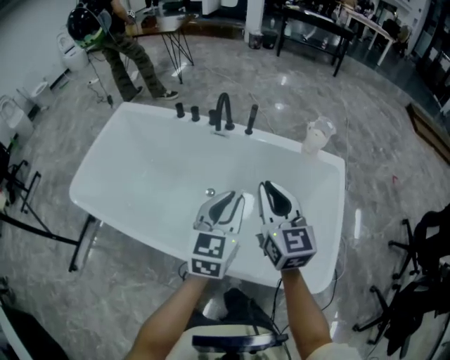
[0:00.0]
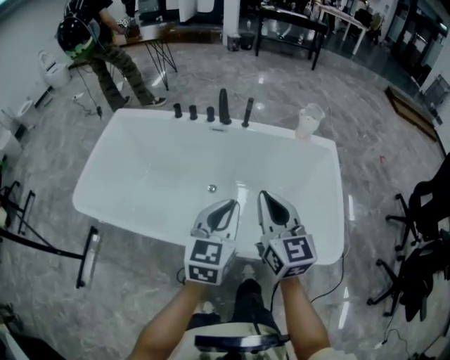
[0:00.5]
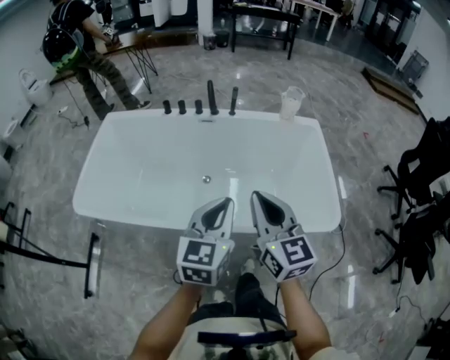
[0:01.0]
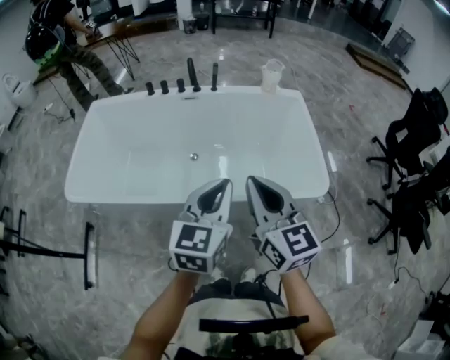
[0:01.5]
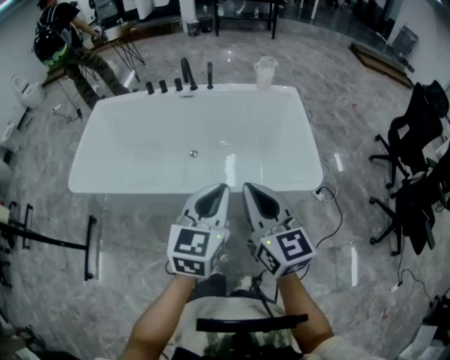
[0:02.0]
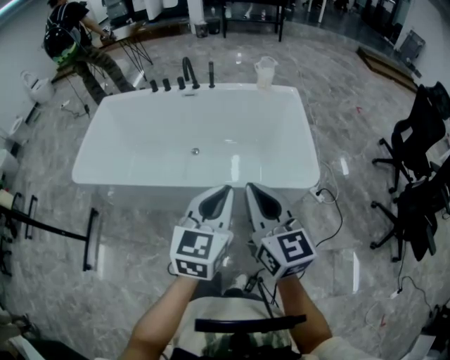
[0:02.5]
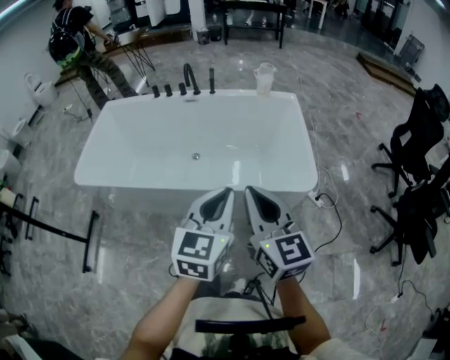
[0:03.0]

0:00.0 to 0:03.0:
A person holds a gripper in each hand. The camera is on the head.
0:00.0 to 0:01.5: Both grippers travel together backward, roughly 30 cm.
0:01.5 to 0:03.0: Both grippers travel together to the right and backward, approximately 15 cm.

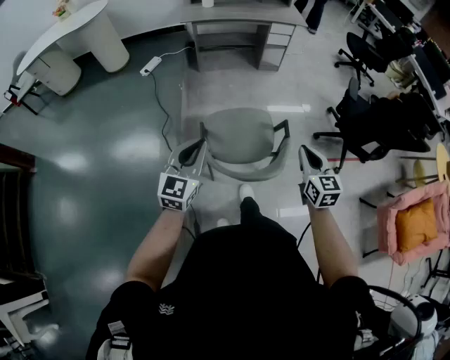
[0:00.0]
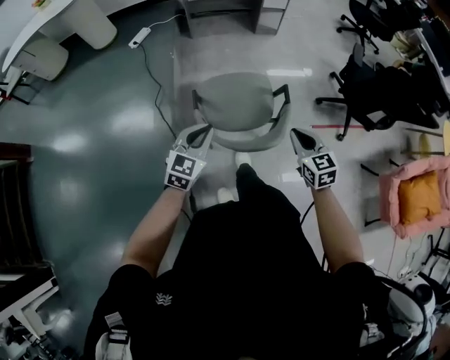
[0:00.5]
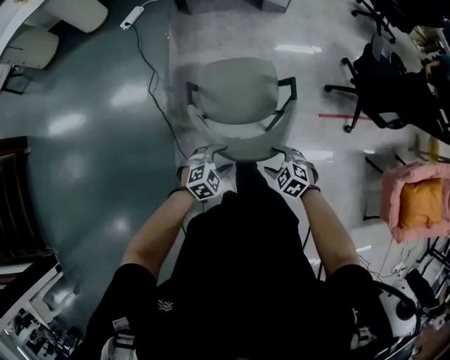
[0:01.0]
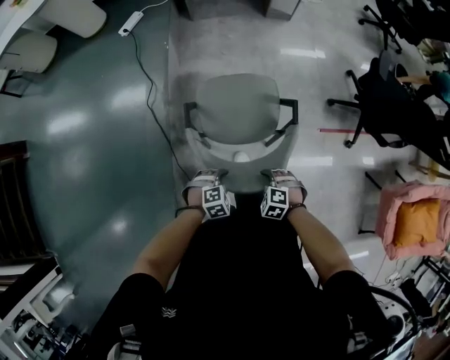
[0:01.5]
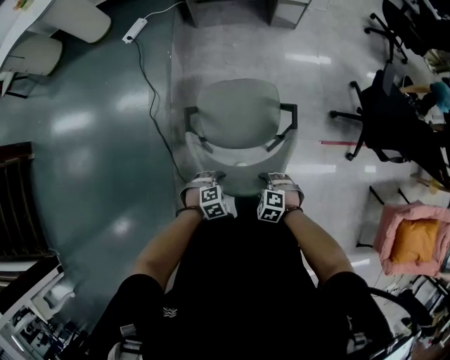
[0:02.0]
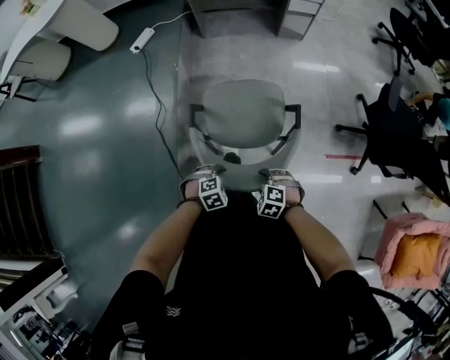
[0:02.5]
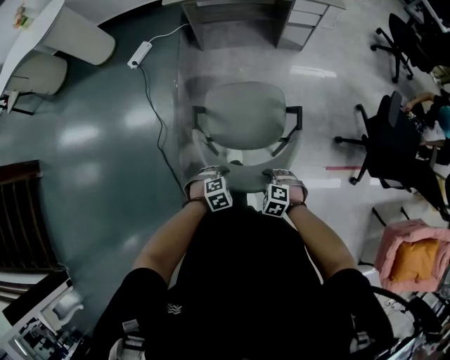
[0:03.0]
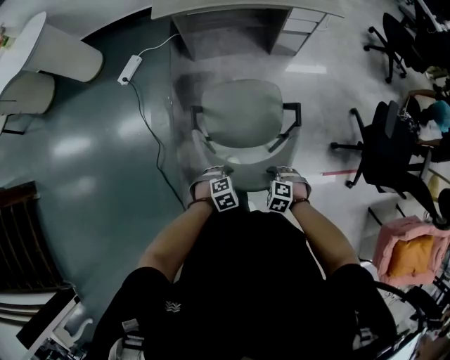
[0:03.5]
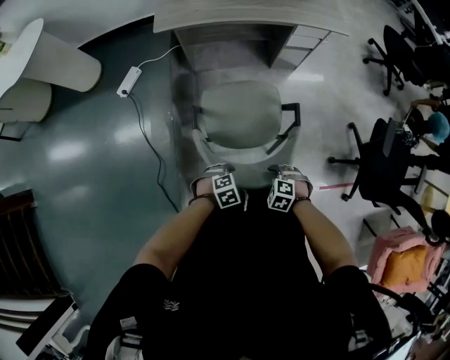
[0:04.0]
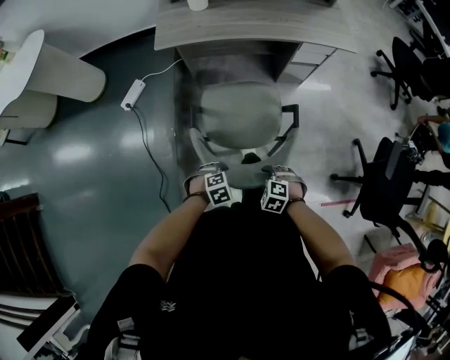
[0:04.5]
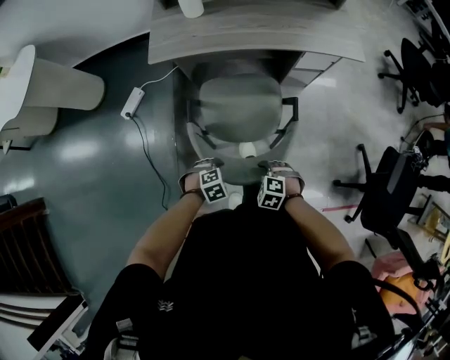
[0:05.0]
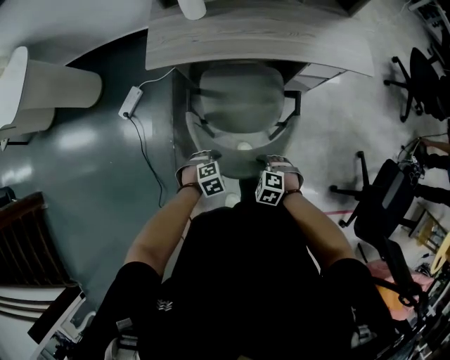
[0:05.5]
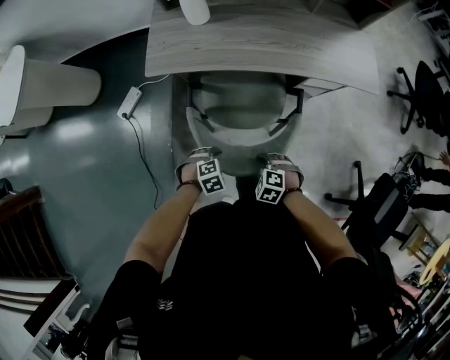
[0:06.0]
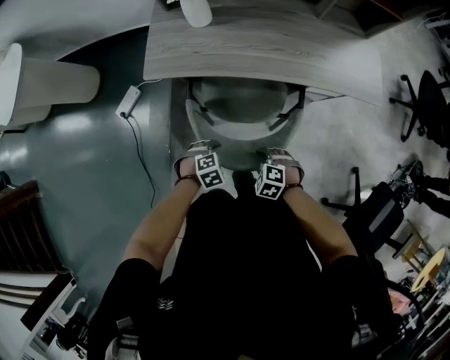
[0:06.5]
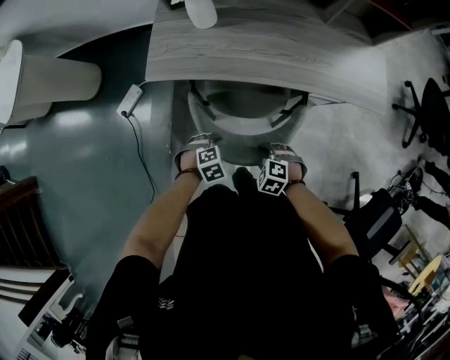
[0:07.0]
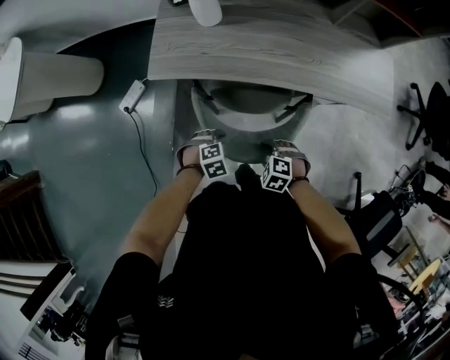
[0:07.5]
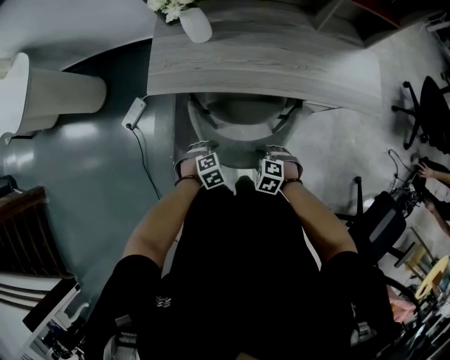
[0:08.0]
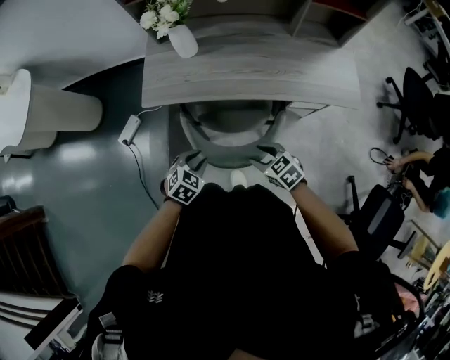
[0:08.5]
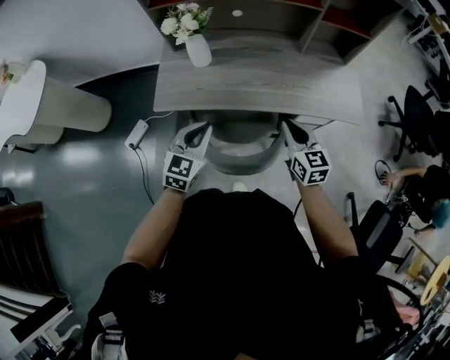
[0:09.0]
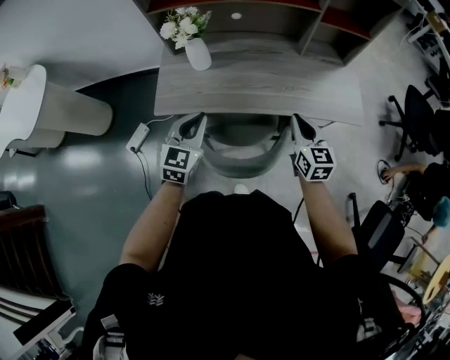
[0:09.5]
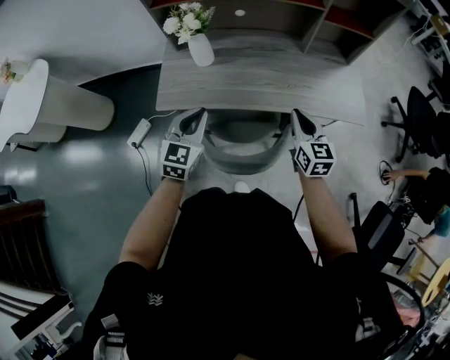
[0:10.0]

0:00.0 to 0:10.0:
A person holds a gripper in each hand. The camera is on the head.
0:00.0 to 0:02.0: Both grippers travel together downward, roughly 35 cm. The right gripper tilts its fingers some 50 degrees downward, and opens. The left gripper points its fingers about 60 degrees further downward, and opens up.
0:02.0 to 0:04.0: Both grippers are carried roughly 40 cm.
0:04.0 to 0:06.0: The left gripper moves roughly 40 cm, while the right gripper ends up approximately 40 cm from where it was.
0:06.0 to 0:08.0: The right gripper changes place by about 10 cm; the left gripper ends up some 10 cm from where it was.
0:08.0 to 0:10.0: Both grippers travel together upward, approximately 30 cm. The right gripper points its fingers approximately 50 degrees further upward, and closes. The left gripper tilts its fingers about 60 degrees upward, and closes.

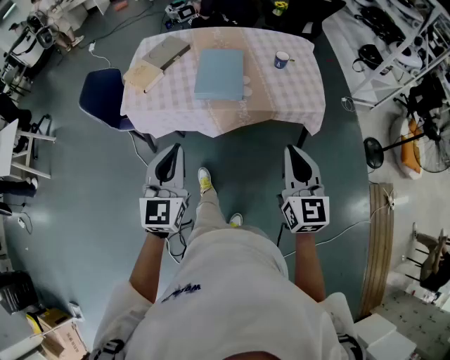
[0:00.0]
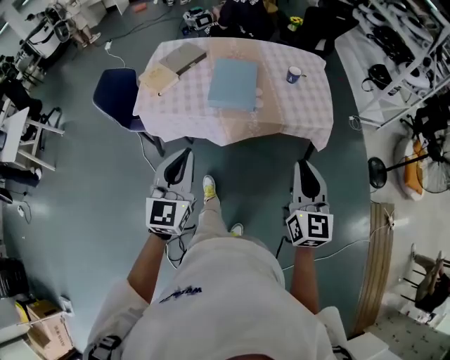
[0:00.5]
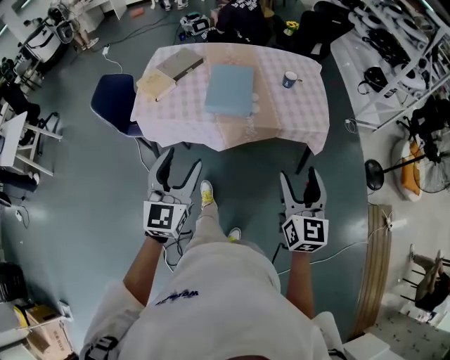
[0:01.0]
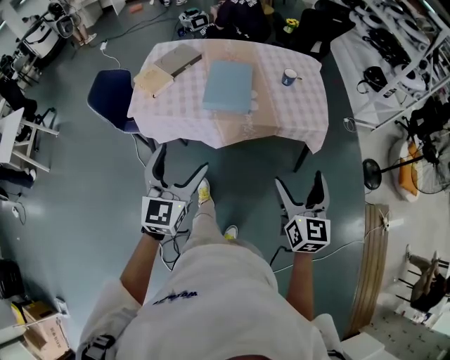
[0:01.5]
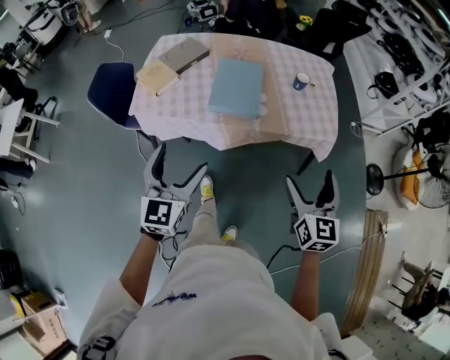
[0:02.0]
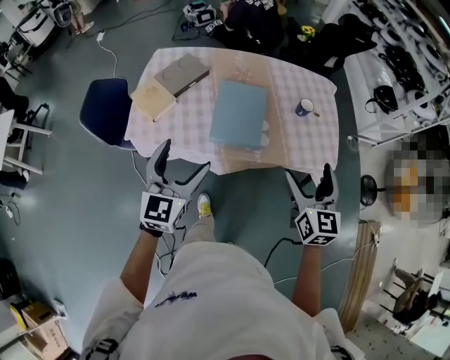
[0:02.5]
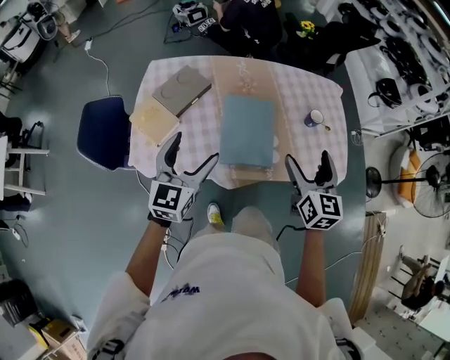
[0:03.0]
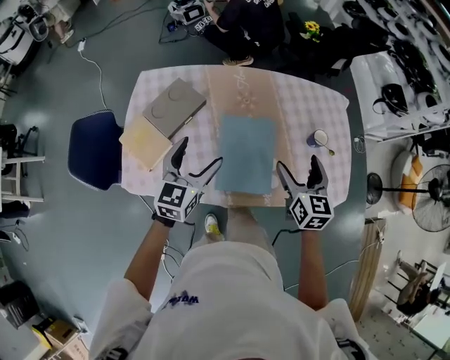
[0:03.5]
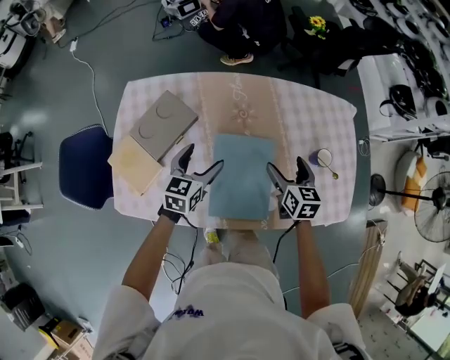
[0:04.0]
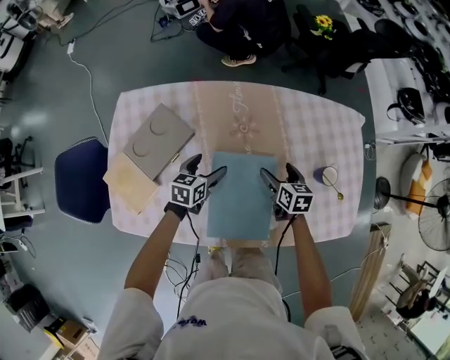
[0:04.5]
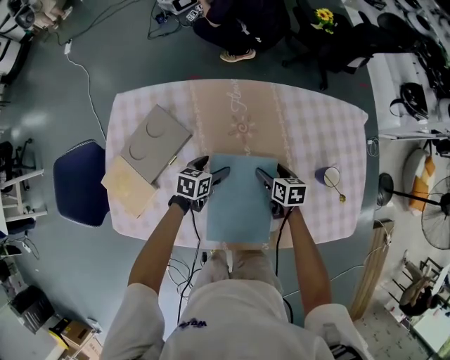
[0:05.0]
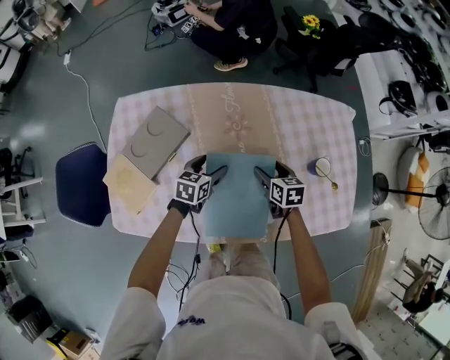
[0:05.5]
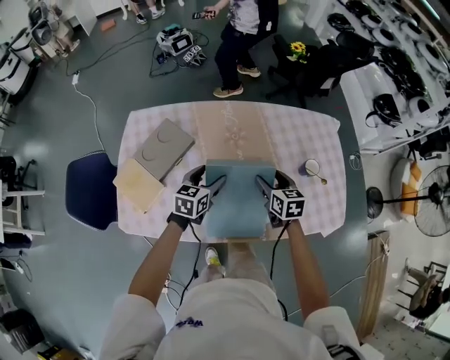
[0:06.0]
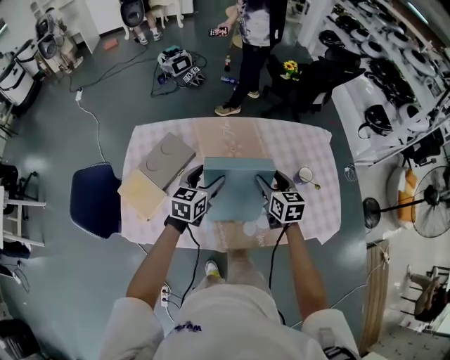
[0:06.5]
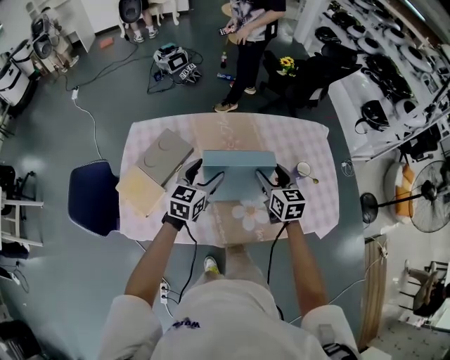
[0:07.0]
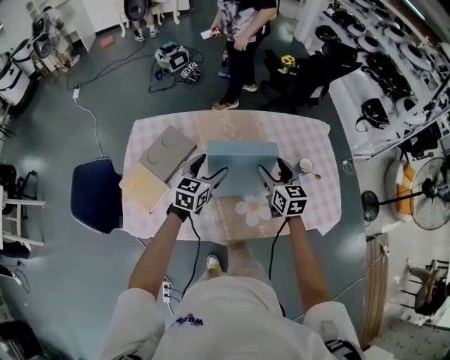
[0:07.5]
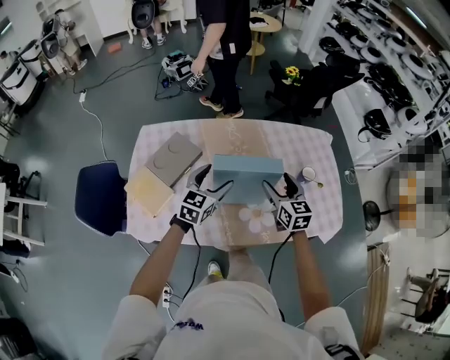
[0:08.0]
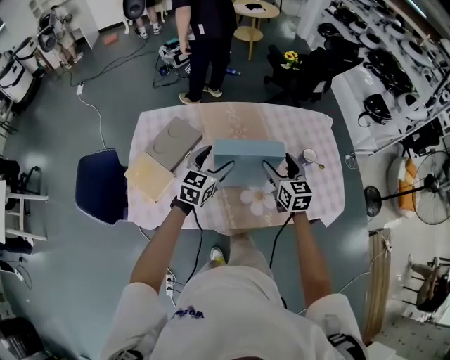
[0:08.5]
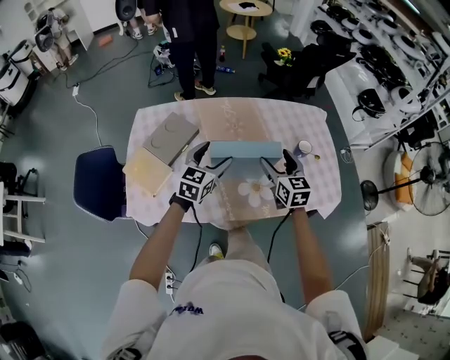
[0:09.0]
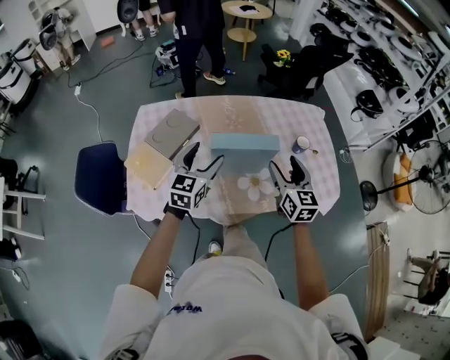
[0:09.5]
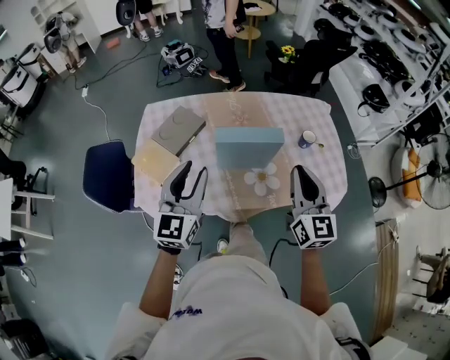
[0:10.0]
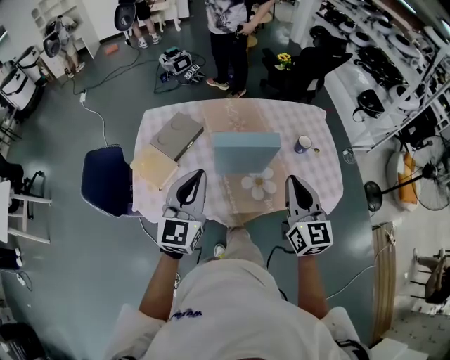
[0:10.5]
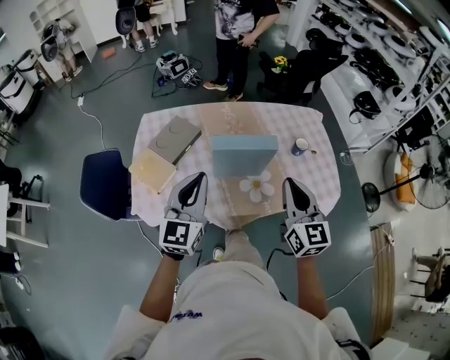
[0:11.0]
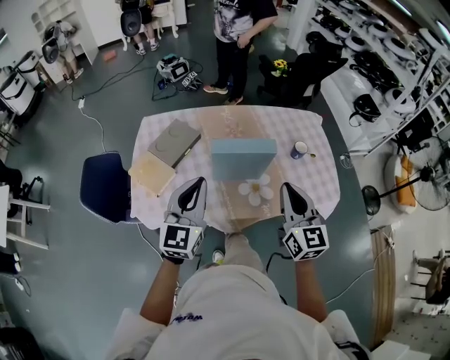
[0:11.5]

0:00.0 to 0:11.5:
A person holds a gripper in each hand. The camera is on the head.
0:00.0 to 0:02.0: Both grippers move forward, about 5 cm. The left gripper opens its fingers. The right gripper opens its fingers.
0:02.0 to 0:04.0: The two grippers travel together, forward, some 50 cm. The right gripper swivels about 30 degrees; the left gripper swivels roughly 30 degrees.
0:04.0 to 0:06.0: The right gripper reaches some 15 cm downward, then returns; the left gripper goes downward and returns, about 15 cm each way.
0:06.0 to 0:07.5: Both grippers travel together upward, approximately 10 cm.
0:07.5 to 0:09.5: Both grippers move backward and upward, about 15 cm.
0:09.5 to 0:11.5: The grippers both shift backward and upward by approximately 15 cm. The right gripper closes. The left gripper closes up.

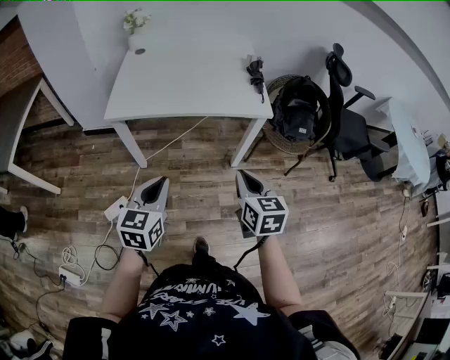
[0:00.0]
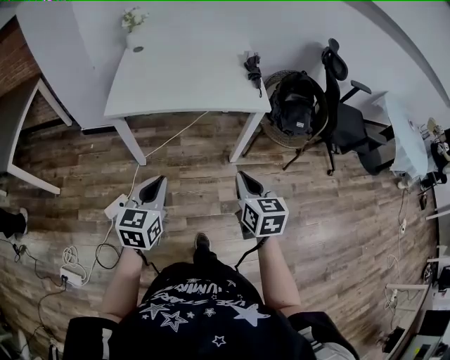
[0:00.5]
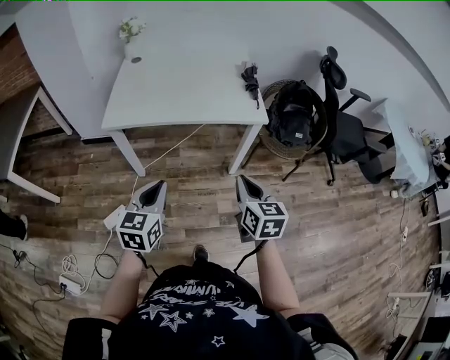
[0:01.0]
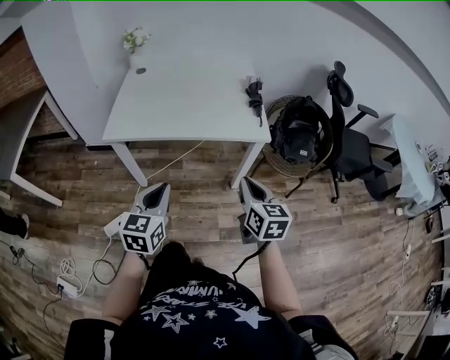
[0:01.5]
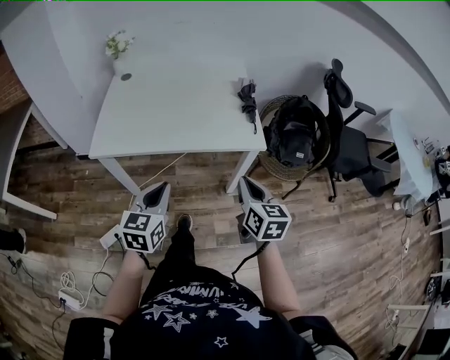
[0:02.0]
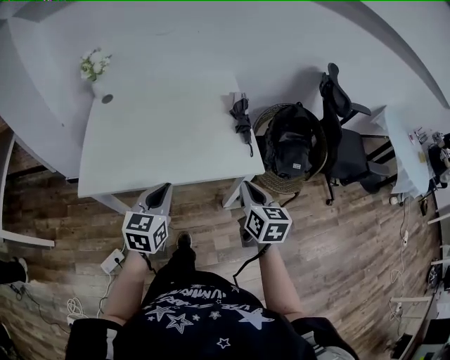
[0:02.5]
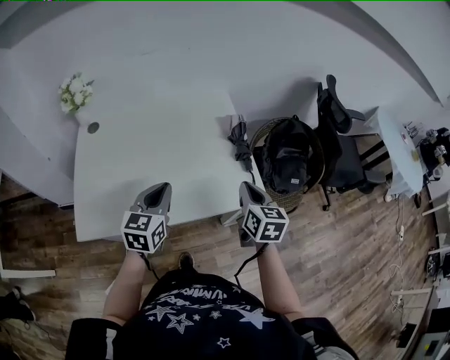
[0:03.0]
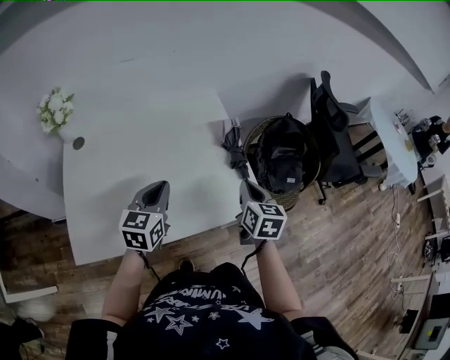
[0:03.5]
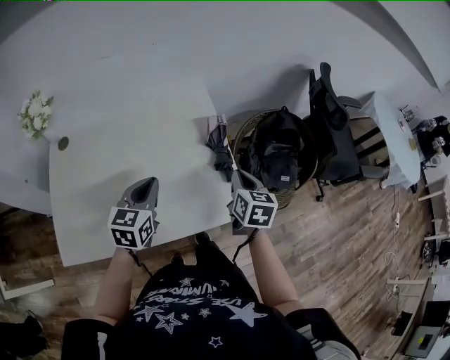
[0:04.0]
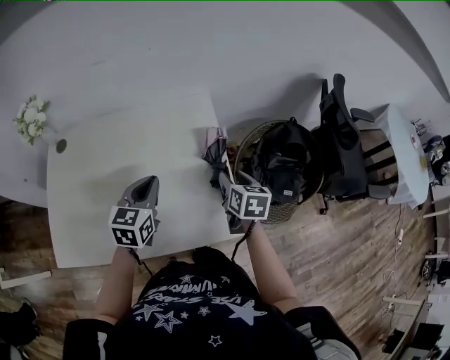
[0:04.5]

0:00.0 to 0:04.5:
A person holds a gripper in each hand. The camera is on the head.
0:00.0 to 0:02.0: The grippers both shift forward by approximately 15 cm.
0:02.0 to 0:04.5: The pair of grippers is taken forward, approximately 40 cm. The right gripper rotates about 20 degrees, and opens up.
